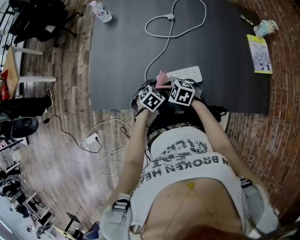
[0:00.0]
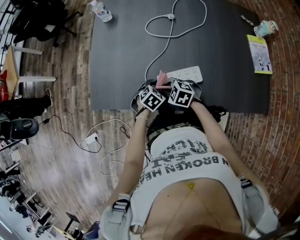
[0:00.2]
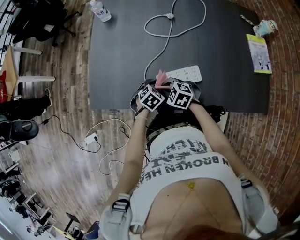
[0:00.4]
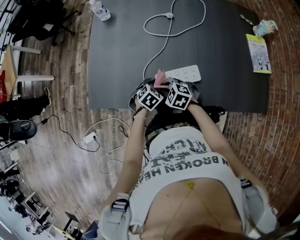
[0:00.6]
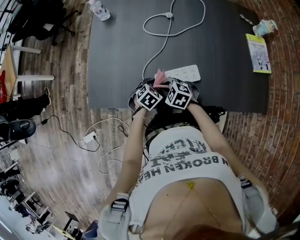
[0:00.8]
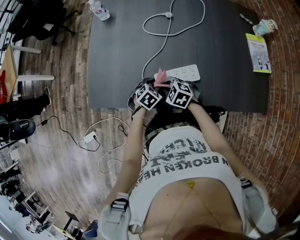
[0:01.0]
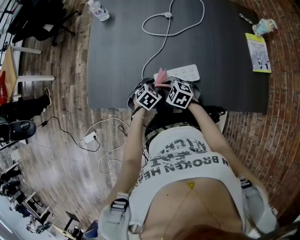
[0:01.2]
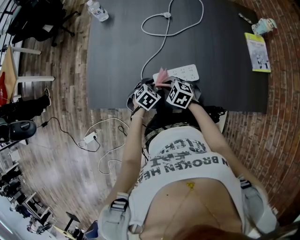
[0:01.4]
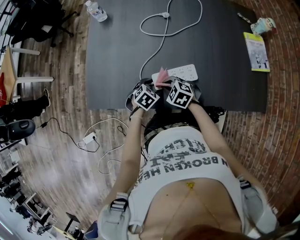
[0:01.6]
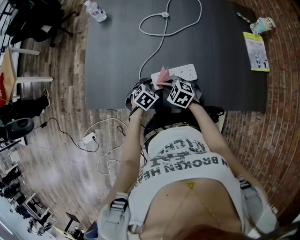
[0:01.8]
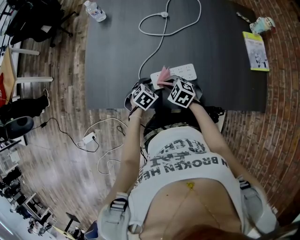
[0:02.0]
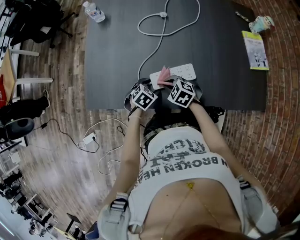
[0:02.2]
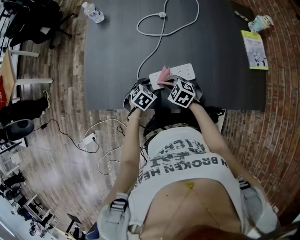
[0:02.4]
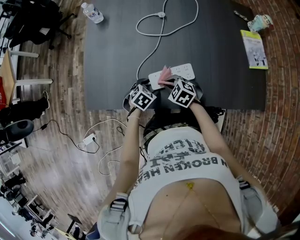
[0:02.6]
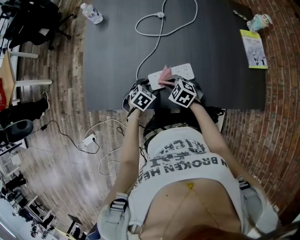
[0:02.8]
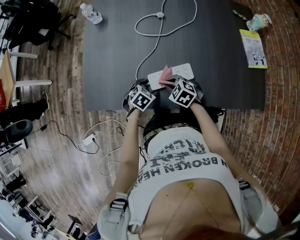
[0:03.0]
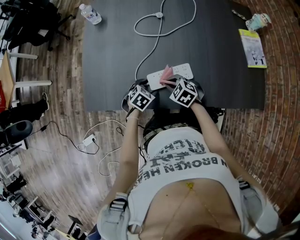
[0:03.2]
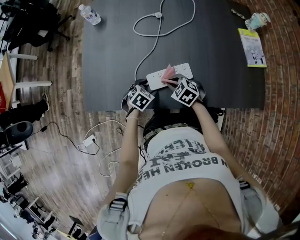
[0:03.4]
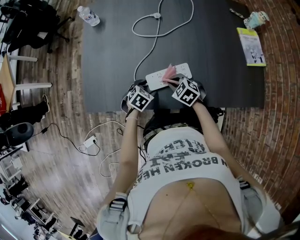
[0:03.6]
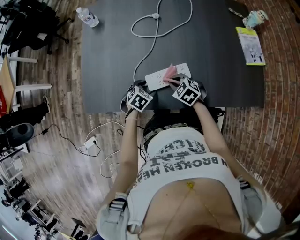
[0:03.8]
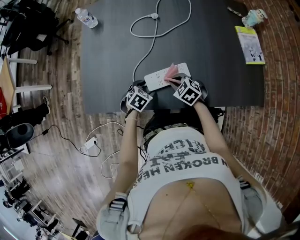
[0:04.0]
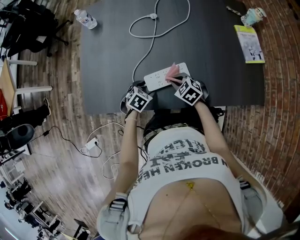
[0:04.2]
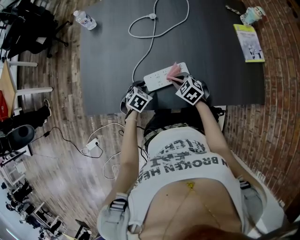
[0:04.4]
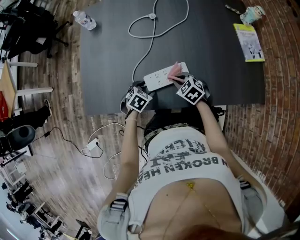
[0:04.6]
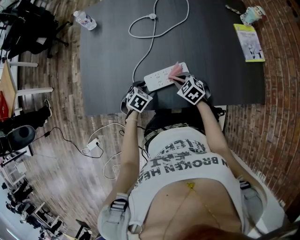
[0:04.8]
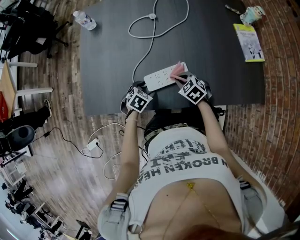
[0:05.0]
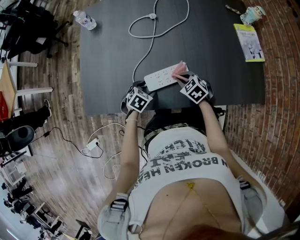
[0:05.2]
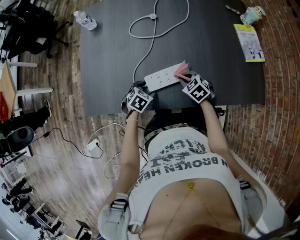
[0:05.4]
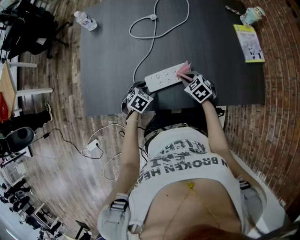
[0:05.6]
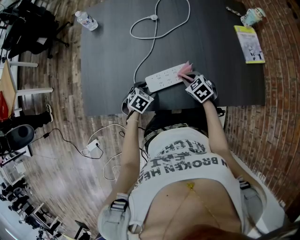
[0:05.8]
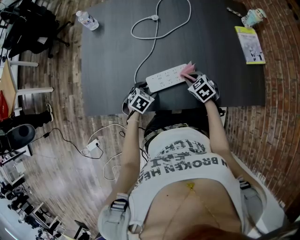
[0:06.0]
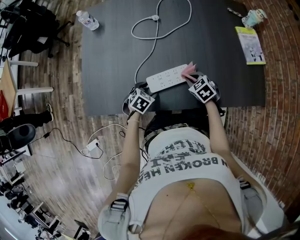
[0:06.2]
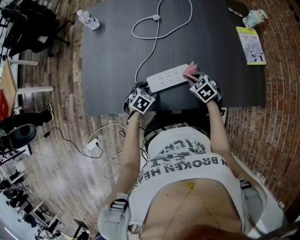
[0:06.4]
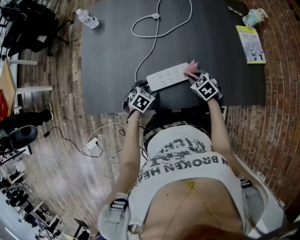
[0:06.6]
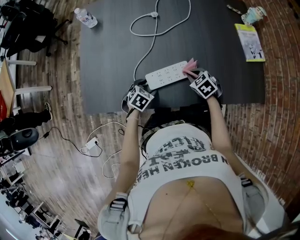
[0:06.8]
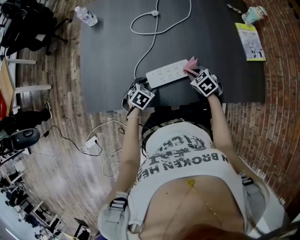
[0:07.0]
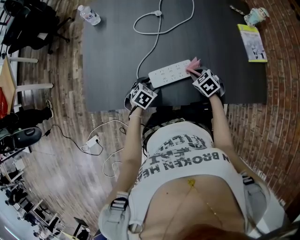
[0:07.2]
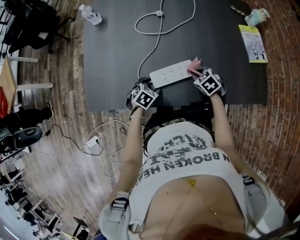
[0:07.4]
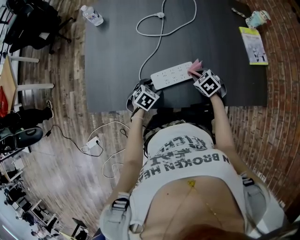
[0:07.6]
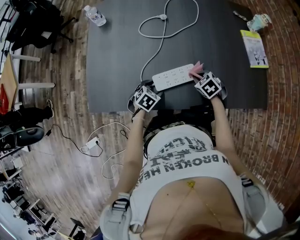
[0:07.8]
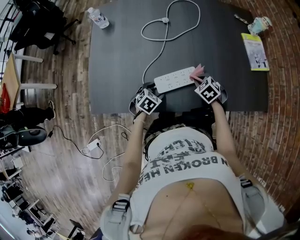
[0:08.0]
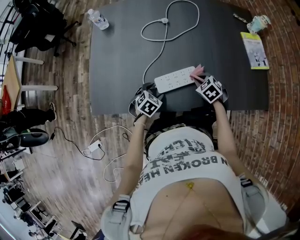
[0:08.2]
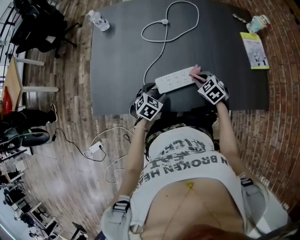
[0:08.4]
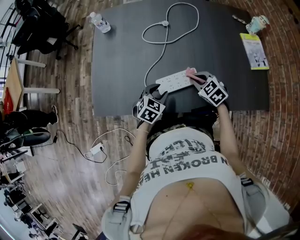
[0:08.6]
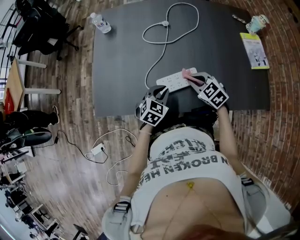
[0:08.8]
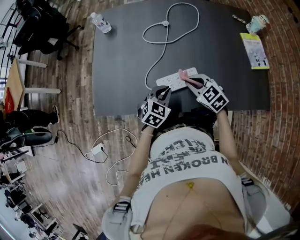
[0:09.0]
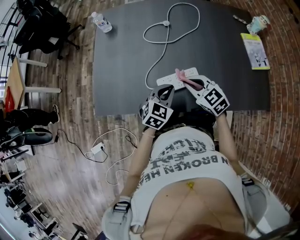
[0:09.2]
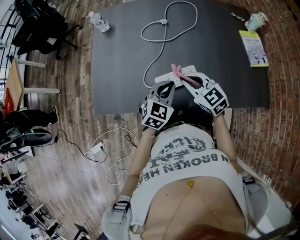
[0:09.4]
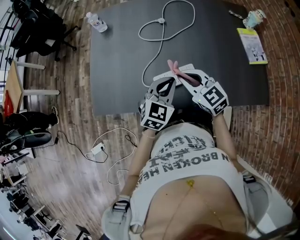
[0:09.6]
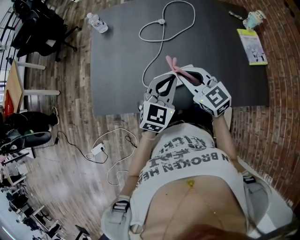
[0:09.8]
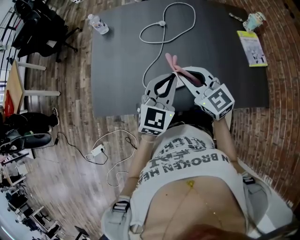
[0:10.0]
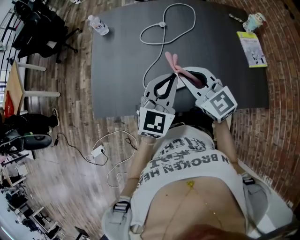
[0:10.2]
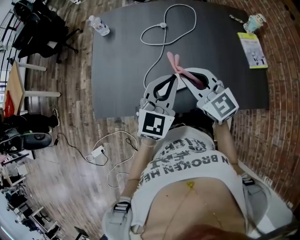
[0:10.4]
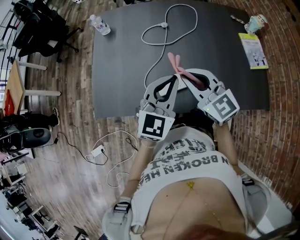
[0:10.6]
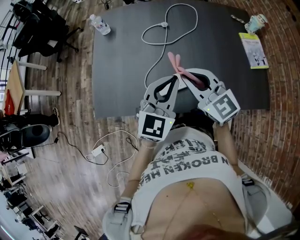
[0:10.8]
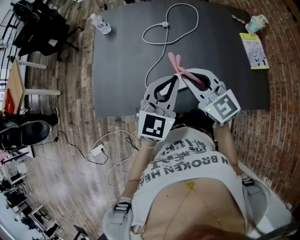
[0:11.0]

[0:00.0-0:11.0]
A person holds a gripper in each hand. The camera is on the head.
0:00.0 to 0:01.6: The grippers move only a little.
0:01.6 to 0:03.2: The grippers stay close to where they were, moving slightly.
0:03.2 to 0:04.8: The right gripper travels to the right by about 5 cm.
0:04.8 to 0:06.2: The right gripper is displaced to the right by about 5 cm.
0:06.2 to 0:07.8: The grippers stay close to where they were, moving slightly.
0:07.8 to 0:09.4: The left gripper is displaced upward by about 20 cm, points its fingers roughly 30 degrees further upward, and closes its fingers. Meanwhile the right gripper travels upward and to the left by roughly 20 cm, and tilts its fingers some 40 degrees upward.
0:09.4 to 0:11.0: The two grippers go roughly 15 cm upward.

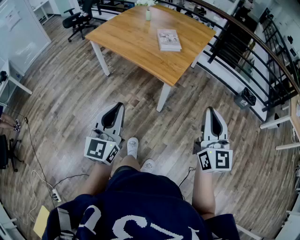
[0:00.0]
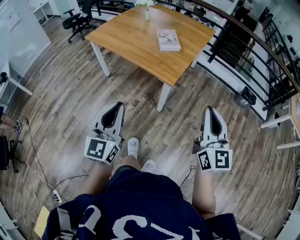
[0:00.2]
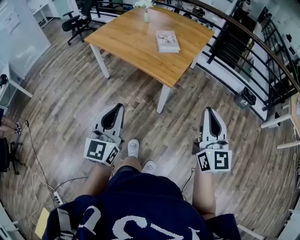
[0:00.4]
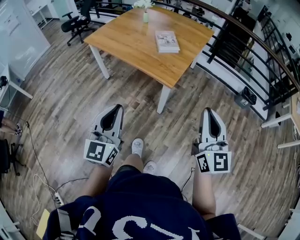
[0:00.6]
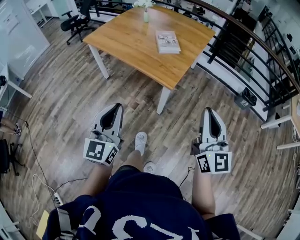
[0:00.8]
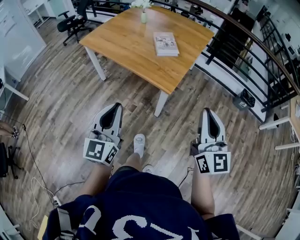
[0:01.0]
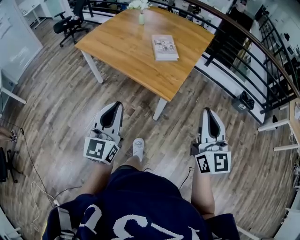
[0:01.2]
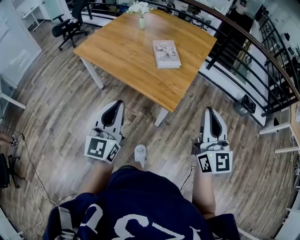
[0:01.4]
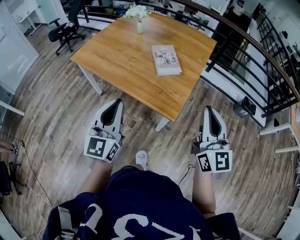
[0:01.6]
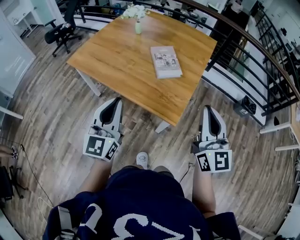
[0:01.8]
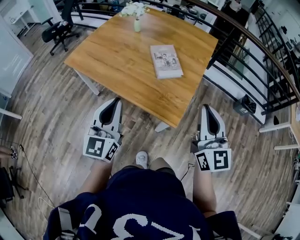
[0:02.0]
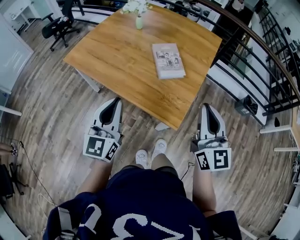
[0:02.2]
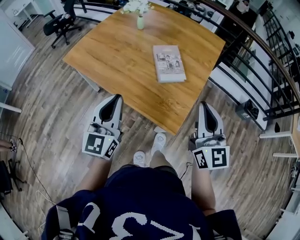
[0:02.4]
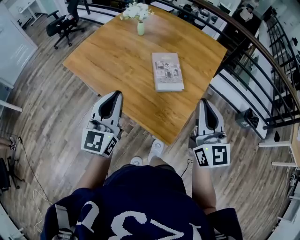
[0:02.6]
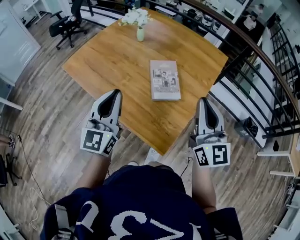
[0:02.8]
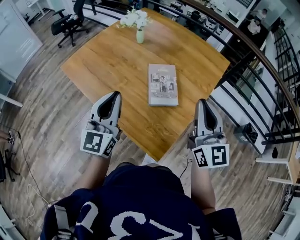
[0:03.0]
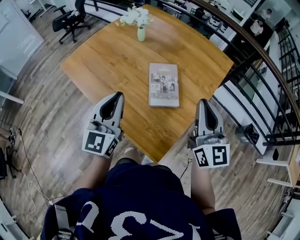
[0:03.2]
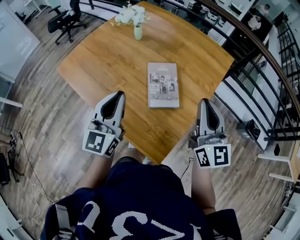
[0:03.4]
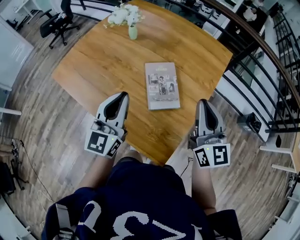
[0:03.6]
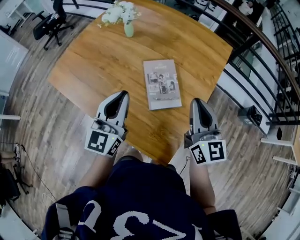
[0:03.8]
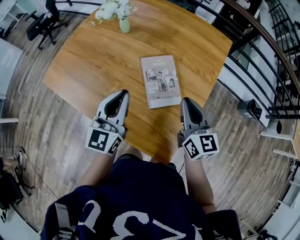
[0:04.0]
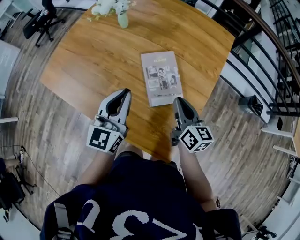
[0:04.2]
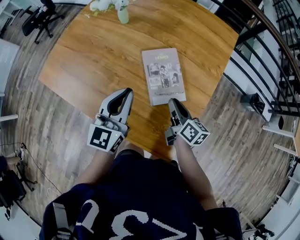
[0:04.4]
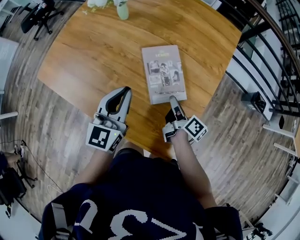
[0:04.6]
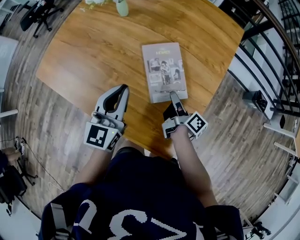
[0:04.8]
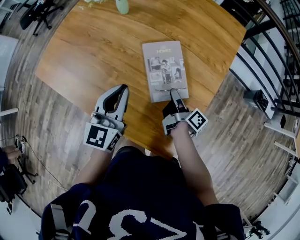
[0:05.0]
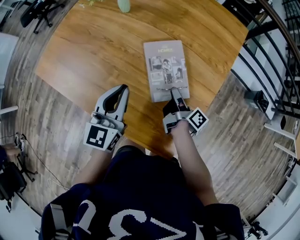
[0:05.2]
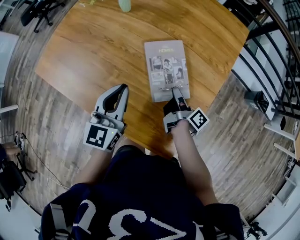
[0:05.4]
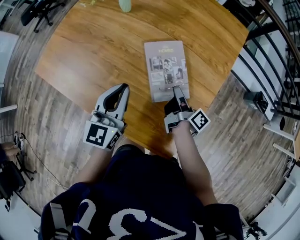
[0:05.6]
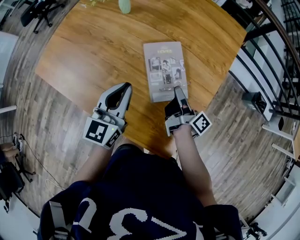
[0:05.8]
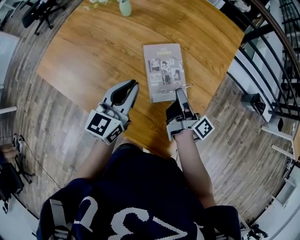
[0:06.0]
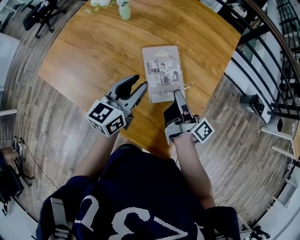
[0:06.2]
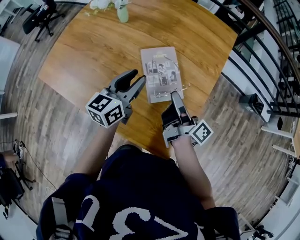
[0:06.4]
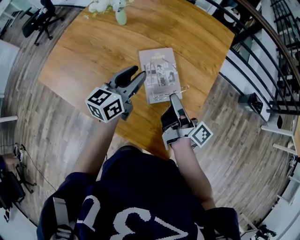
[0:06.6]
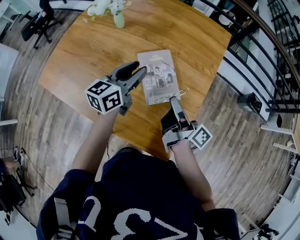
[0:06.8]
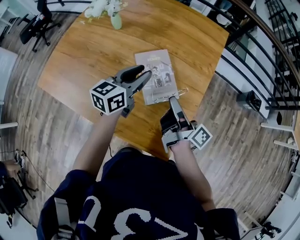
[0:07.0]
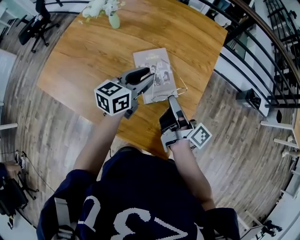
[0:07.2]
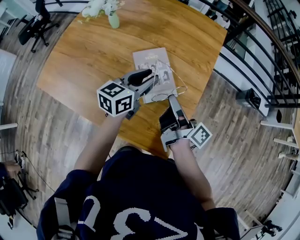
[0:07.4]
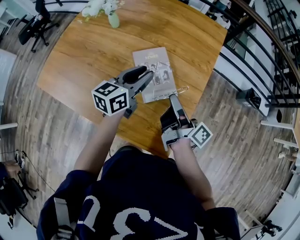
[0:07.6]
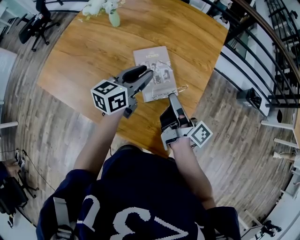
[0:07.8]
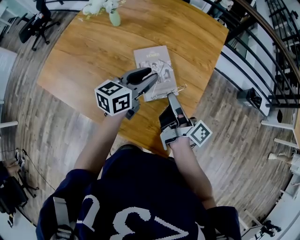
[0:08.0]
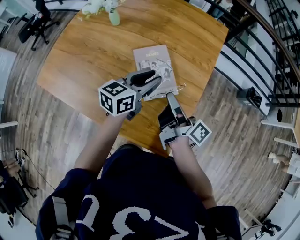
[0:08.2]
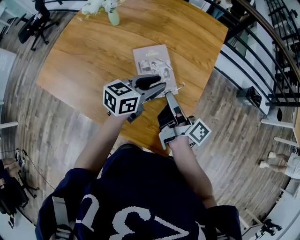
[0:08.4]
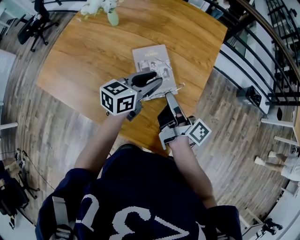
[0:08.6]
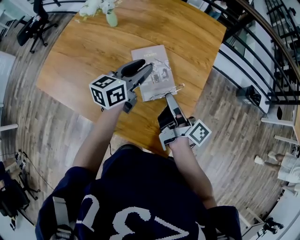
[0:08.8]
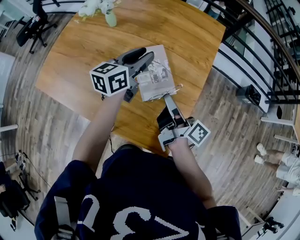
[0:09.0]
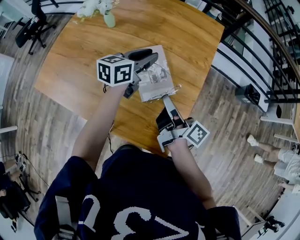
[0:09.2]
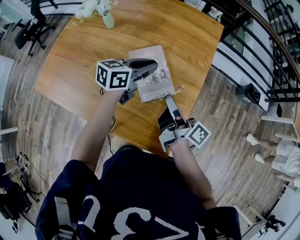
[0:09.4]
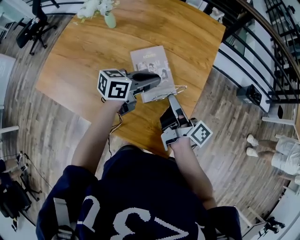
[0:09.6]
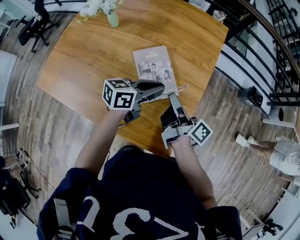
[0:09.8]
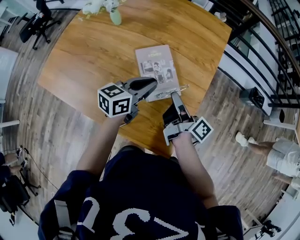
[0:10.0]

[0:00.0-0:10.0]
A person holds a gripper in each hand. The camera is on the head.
0:00.0 to 0:01.4: Both grippers move forward, about 20 cm.
0:01.4 to 0:02.8: The grippers both shift forward by approximately 30 cm.
0:02.8 to 0:04.2: The left gripper travels forward and downward by some 20 cm, while the right gripper moves downward and forward, roughly 25 cm, and rotates approximately 40 degrees.
0:04.2 to 0:05.8: The right gripper shifts approximately 5 cm downward, and rolls clockwise, seen from behind, by about 60 degrees, while the left gripper moves about 5 cm.
0:05.8 to 0:07.2: The left gripper travels to the right and forward by some 10 cm, rotates roughly 30 degrees, and opens. The right gripper goes roughly 10 cm upward and backward.
0:07.2 to 0:08.6: The grippers make only small movements.
0:08.6 to 0:10.0: The left gripper travels forward and back again, about 10 cm each way, and closes up.

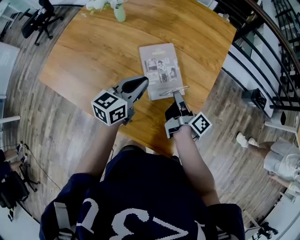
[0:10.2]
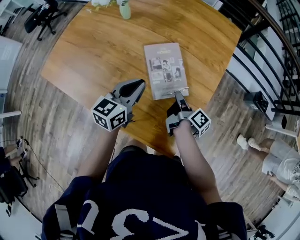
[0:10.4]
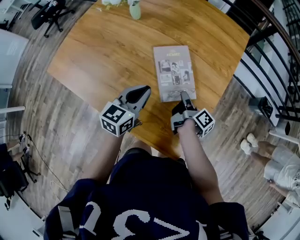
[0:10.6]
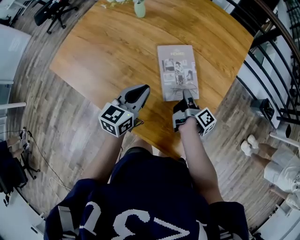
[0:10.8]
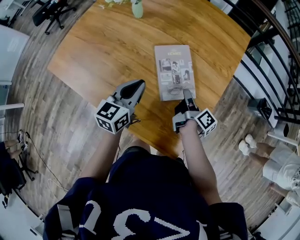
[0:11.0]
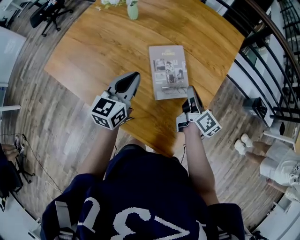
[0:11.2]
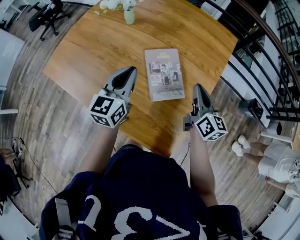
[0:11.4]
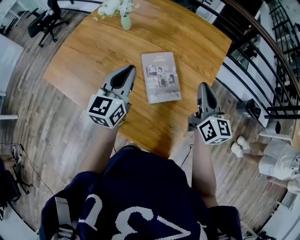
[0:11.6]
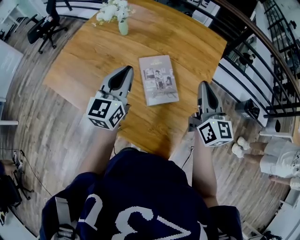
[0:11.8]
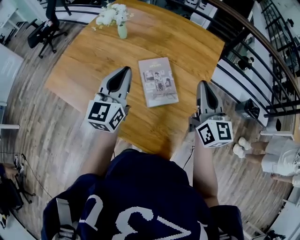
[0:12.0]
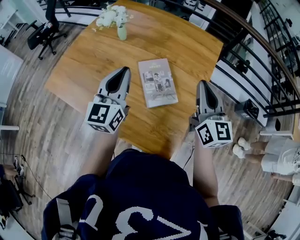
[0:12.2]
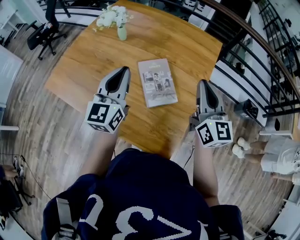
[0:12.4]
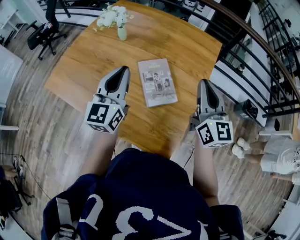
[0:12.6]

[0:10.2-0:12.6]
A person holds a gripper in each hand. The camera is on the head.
0:10.2 to 0:11.4: The right gripper is displaced upward by some 10 cm, and rolls counterclockwise, seen from behind, by about 60 degrees. The left gripper is displaced to the left and upward by roughly 10 cm, and rotates roughly 30 degrees.
0:11.4 to 0:12.6: The right gripper travels upward by roughly 15 cm, and changes its angle by some 30 degrees. Meanwhile the left gripper heads upward, covering about 10 cm.
